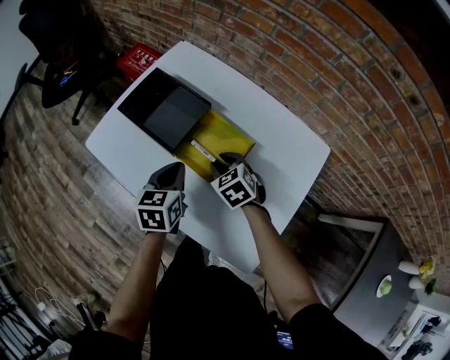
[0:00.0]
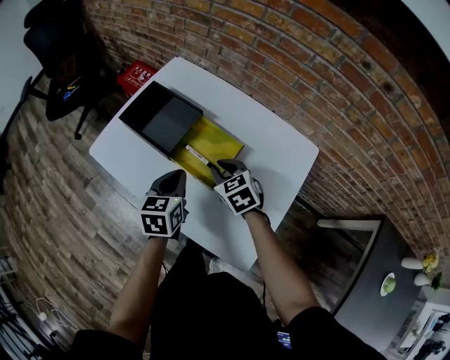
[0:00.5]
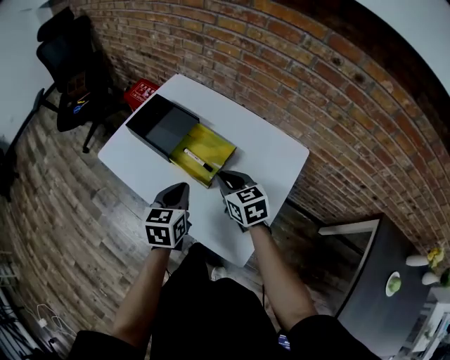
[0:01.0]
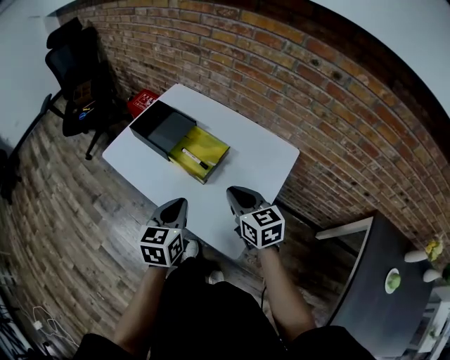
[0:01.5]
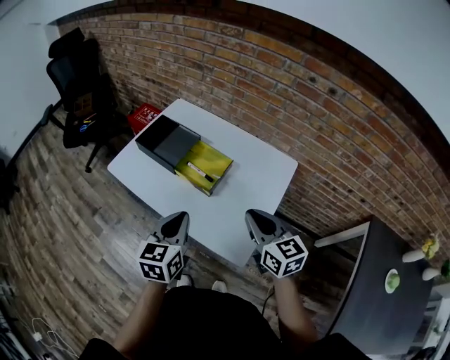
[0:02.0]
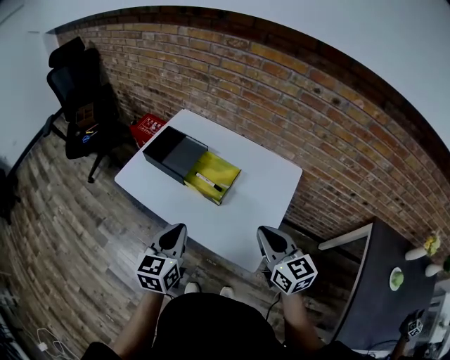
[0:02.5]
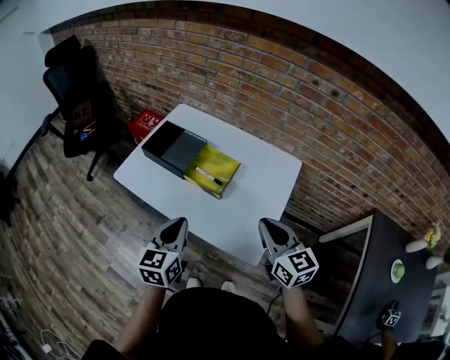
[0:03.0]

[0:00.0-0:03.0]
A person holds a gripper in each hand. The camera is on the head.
0:00.0 to 0:01.5: The left gripper is displaced backward and upward by some 20 cm. Meanwhile the right gripper moves backward, upward and to the right, about 25 cm, points its fingers some 30 degrees further upward, and closes its fingers.
0:01.5 to 0:03.0: The left gripper travels to the left by some 10 cm. The right gripper travels backward and upward by approximately 10 cm.

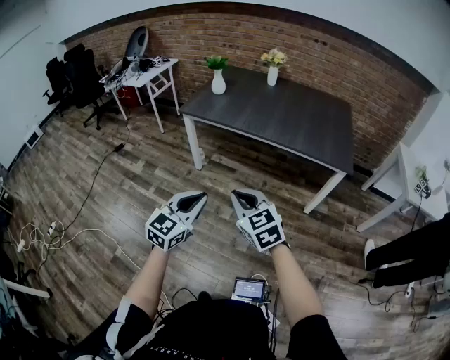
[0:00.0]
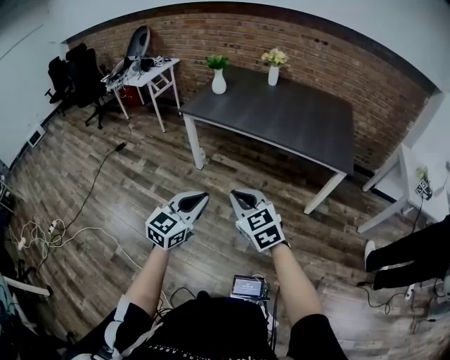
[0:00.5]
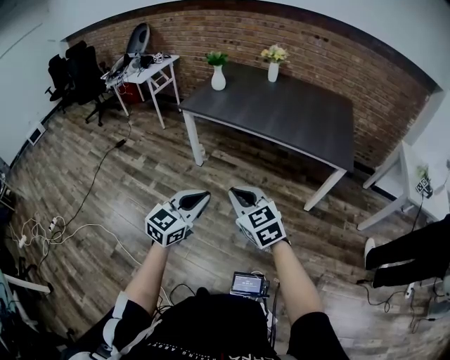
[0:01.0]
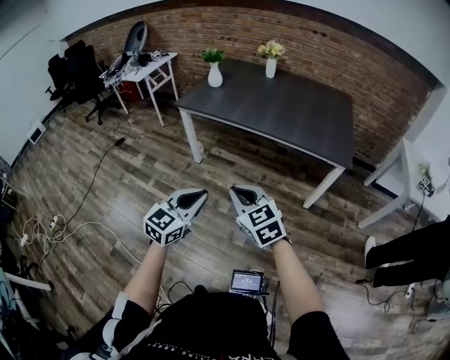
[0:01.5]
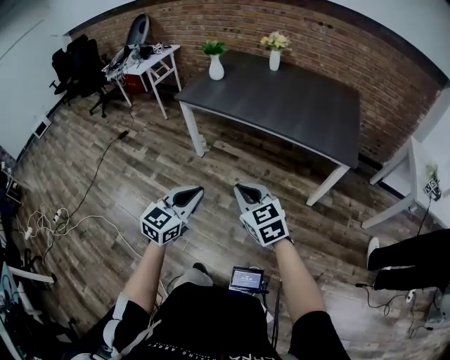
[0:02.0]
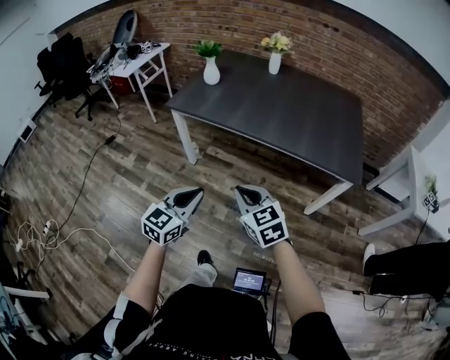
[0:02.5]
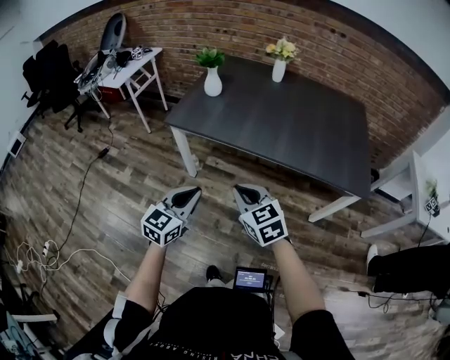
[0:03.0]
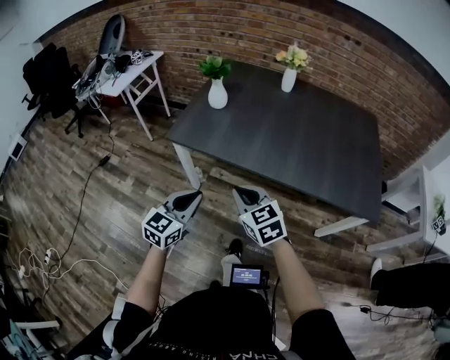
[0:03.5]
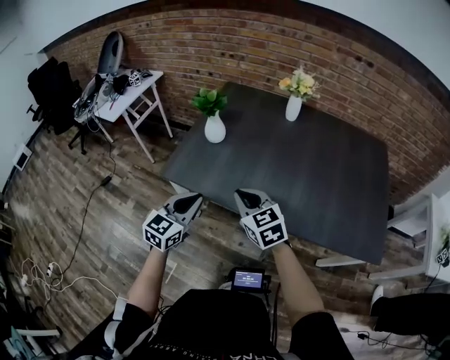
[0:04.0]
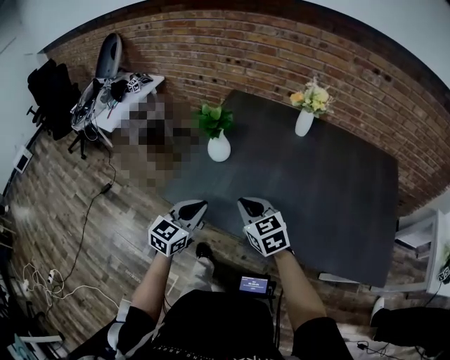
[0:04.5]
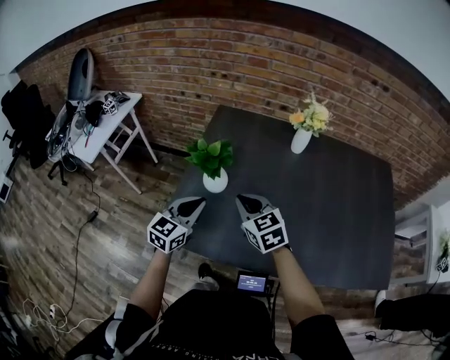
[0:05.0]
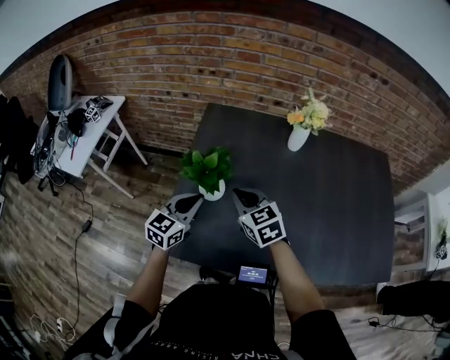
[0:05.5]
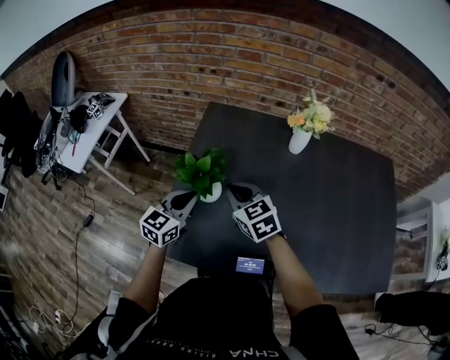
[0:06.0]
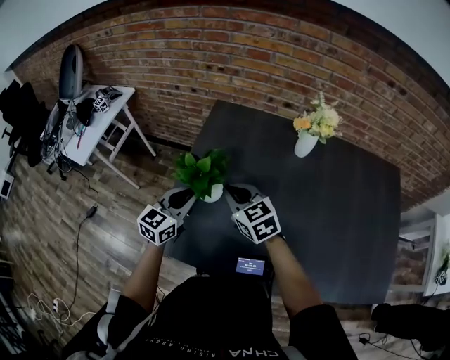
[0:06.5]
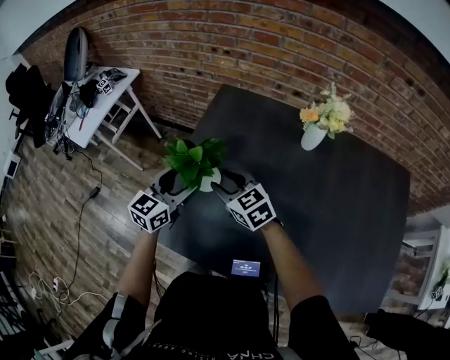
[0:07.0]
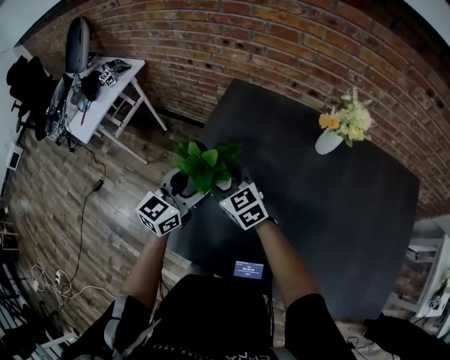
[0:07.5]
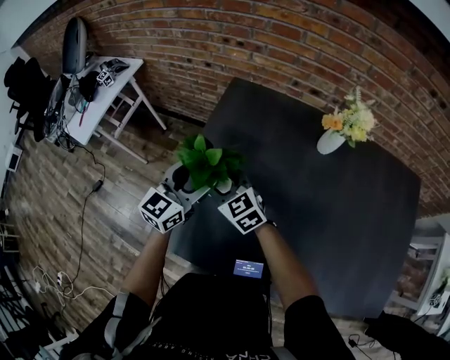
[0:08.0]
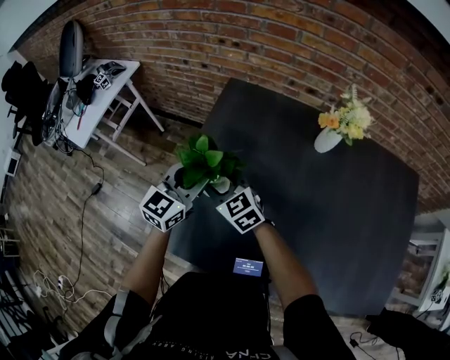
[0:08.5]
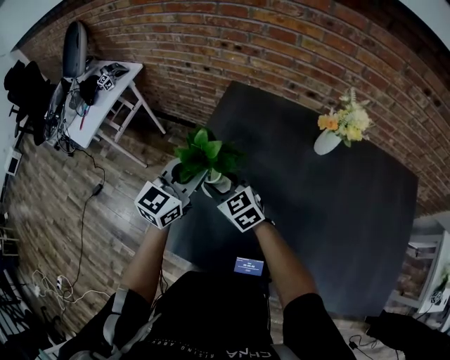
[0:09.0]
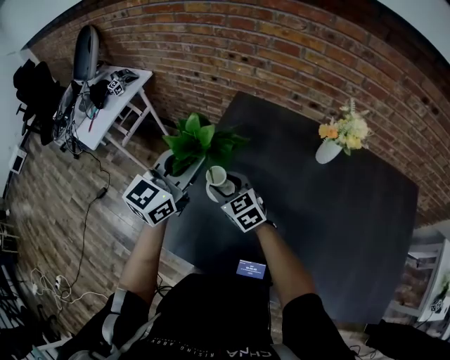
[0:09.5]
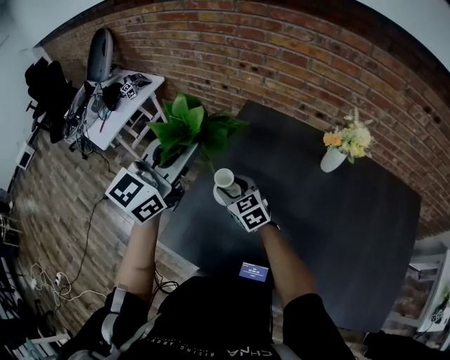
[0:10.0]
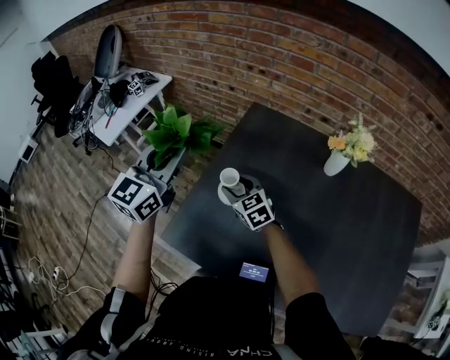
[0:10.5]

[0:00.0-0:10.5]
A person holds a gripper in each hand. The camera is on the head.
0:00.0 to 0:02.0: Both grippers move to the right, about 5 cm.
0:02.0 to 0:04.0: Both grippers are carried forward, about 60 cm.
0:04.0 to 0:06.5: The two grippers go roughly 35 cm forward.
0:06.5 to 0:08.5: The left gripper travels forward by about 5 cm, and opens up. Meanwhile the right gripper travels to the left, downward and forward by some 10 cm, and opens its fingers.
0:08.5 to 0:10.5: The left gripper goes about 20 cm upward and to the left.

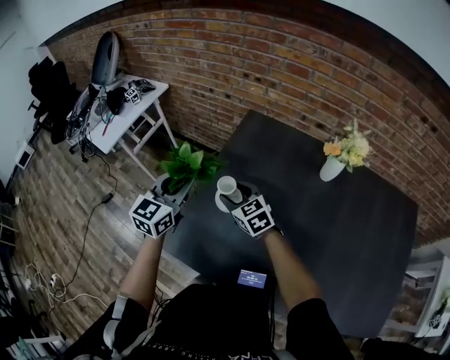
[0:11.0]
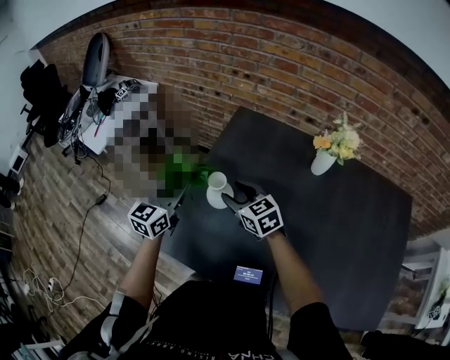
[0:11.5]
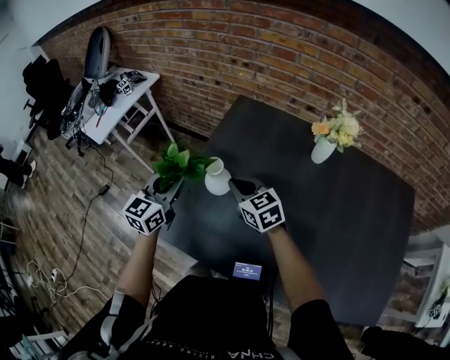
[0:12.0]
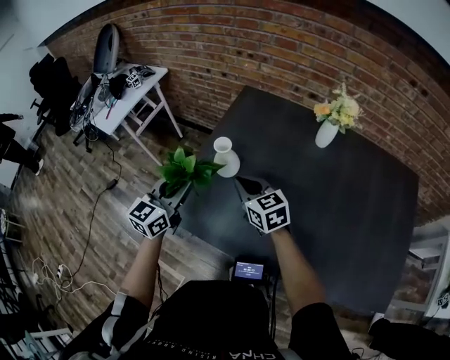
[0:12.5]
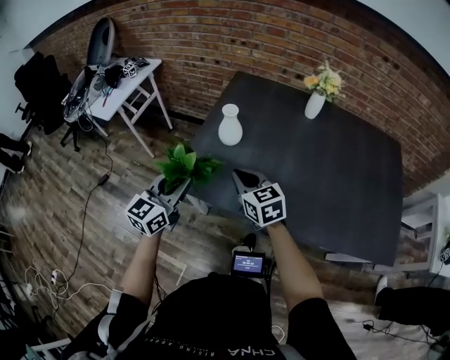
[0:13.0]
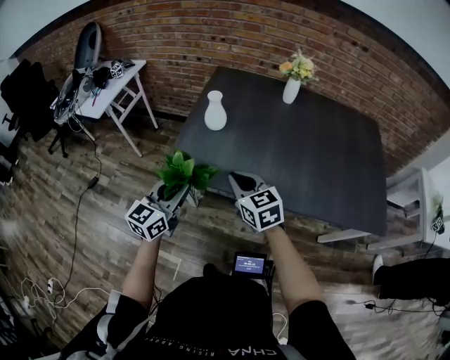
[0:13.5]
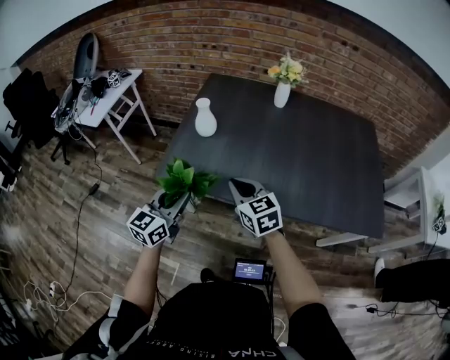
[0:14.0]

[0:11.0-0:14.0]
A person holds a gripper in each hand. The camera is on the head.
0:11.0 to 0:12.5: The two grippers go some 15 cm backward. The right gripper closes up.
0:12.5 to 0:14.0: The grippers both shift backward by some 25 cm.

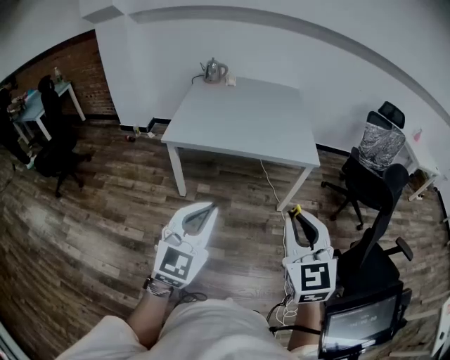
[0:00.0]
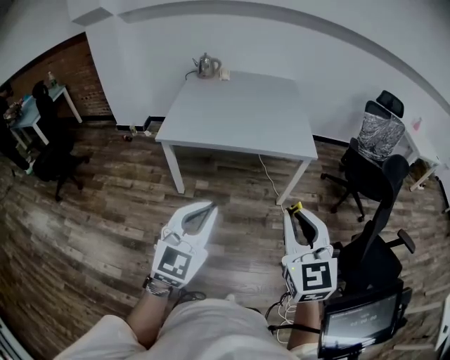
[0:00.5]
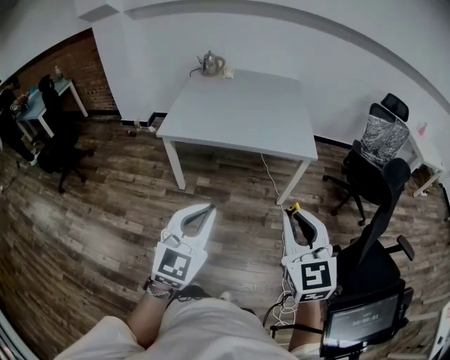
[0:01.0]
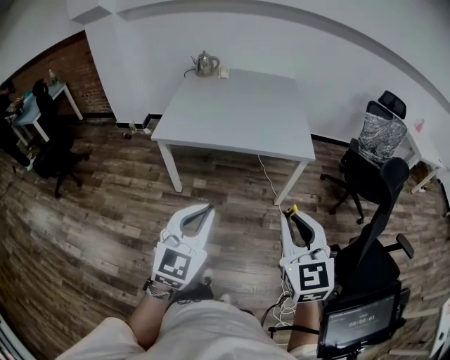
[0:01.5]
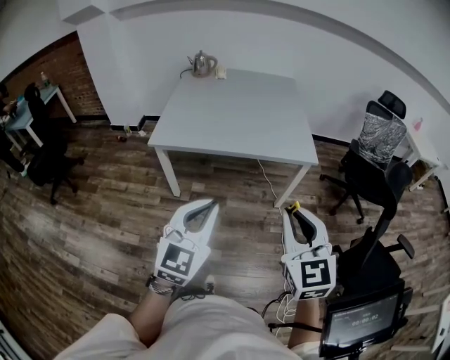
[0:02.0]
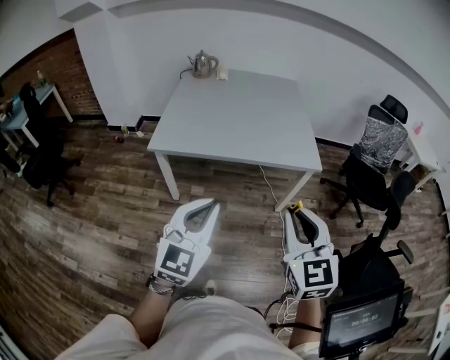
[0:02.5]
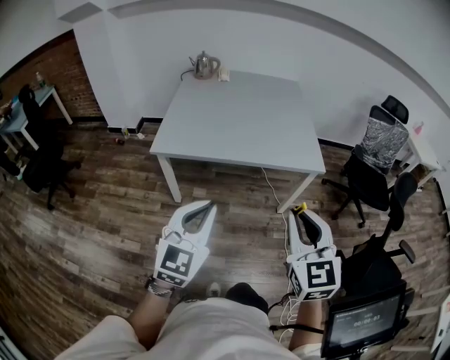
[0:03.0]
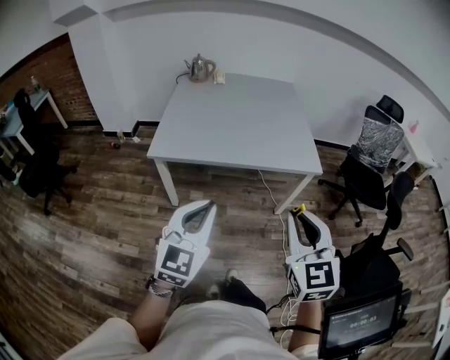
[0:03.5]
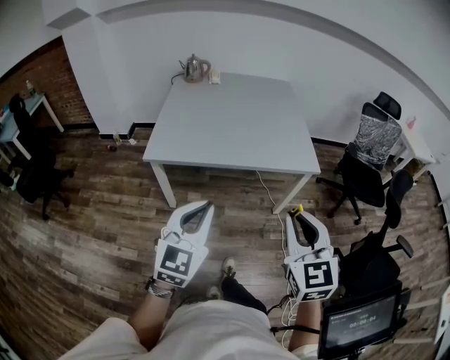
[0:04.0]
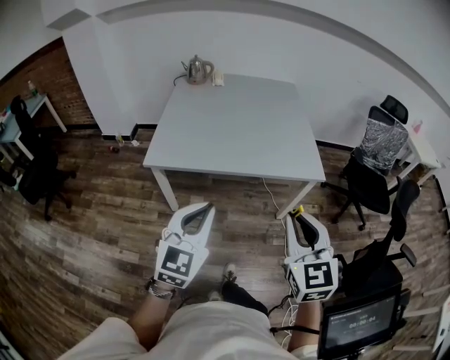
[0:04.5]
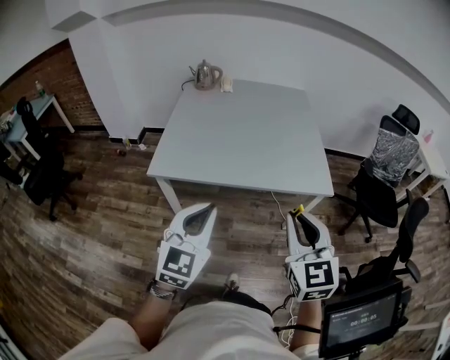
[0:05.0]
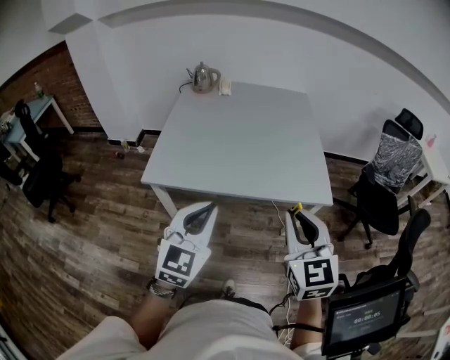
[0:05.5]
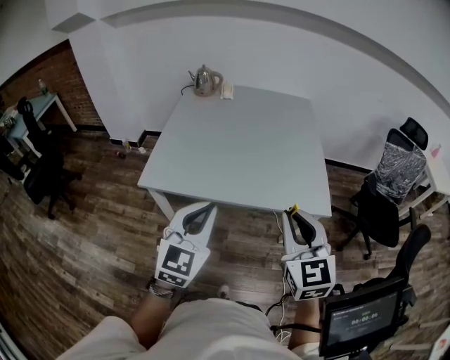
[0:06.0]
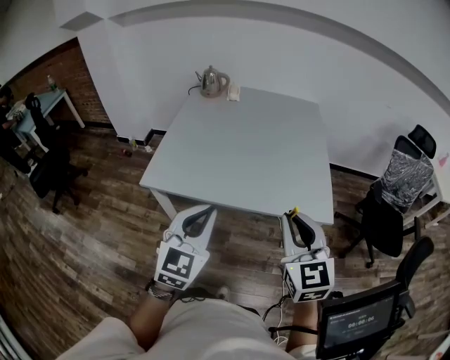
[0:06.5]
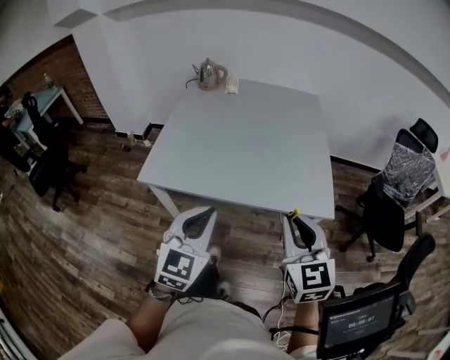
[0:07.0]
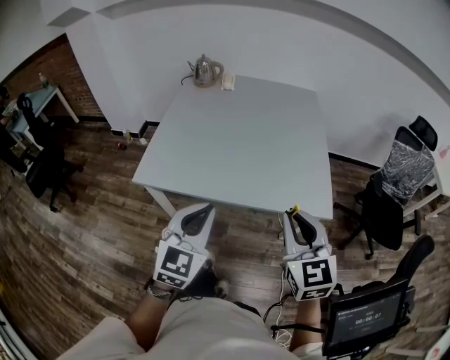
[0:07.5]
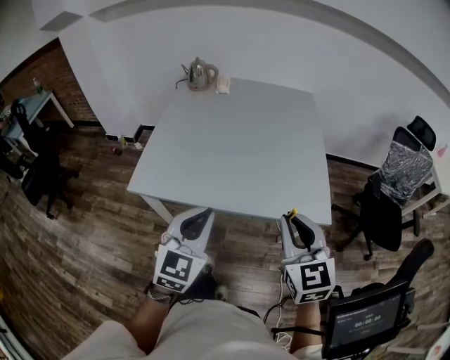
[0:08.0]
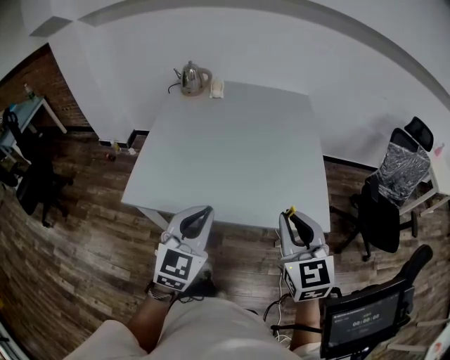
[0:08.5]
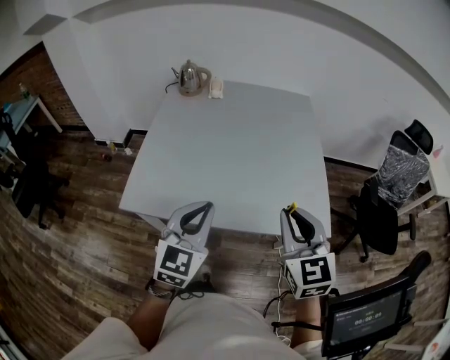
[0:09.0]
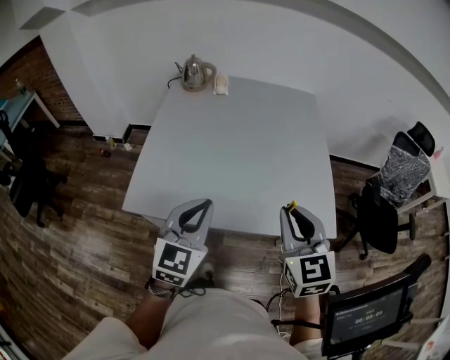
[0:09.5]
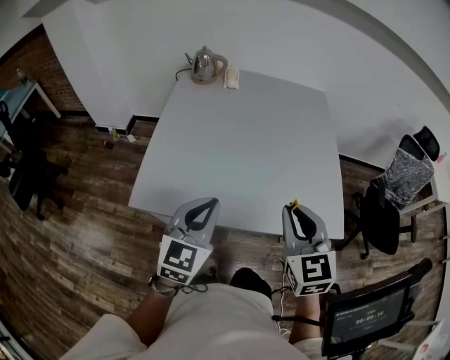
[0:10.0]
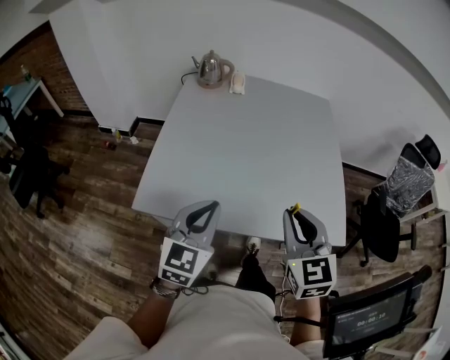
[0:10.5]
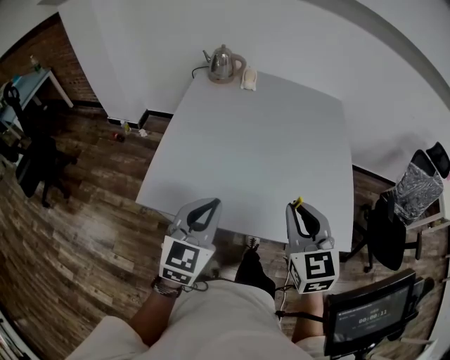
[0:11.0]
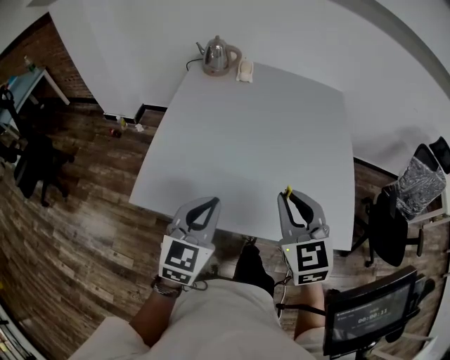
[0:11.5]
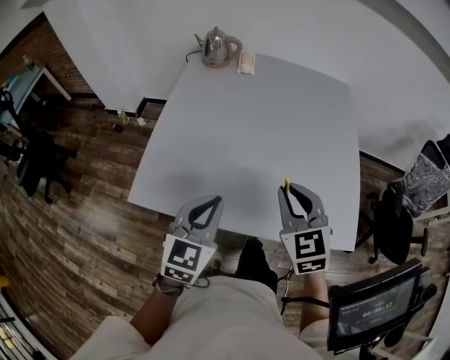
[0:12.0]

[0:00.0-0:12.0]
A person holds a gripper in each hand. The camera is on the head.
0:00.0 to 0:02.0: The grippers both shift forward by approximately 5 cm.
0:02.0 to 0:04.0: The left gripper is displaced forward and to the left by roughly 10 cm; the right gripper is displaced forward by roughly 5 cm.
0:04.0 to 0:06.0: Both grippers travel together forward, about 15 cm.
0:06.0 to 0:08.0: The left gripper shifts by about 5 cm, while the right gripper shifts by about 5 cm.
0:08.0 to 0:10.0: Both grippers travel together forward and to the left, some 15 cm.
0:10.0 to 0:12.0: The right gripper goes approximately 10 cm forward and downward; the left gripper shifts by some 5 cm.
